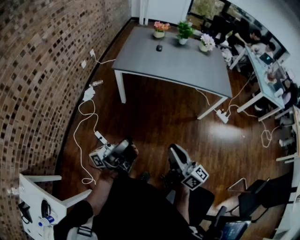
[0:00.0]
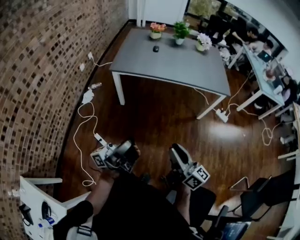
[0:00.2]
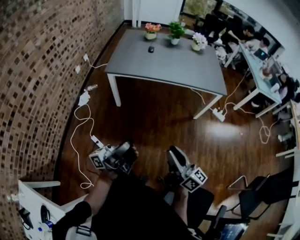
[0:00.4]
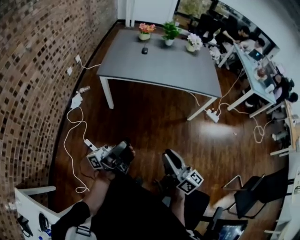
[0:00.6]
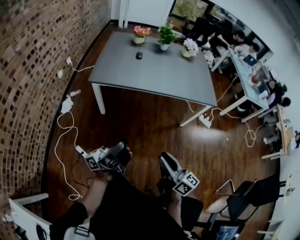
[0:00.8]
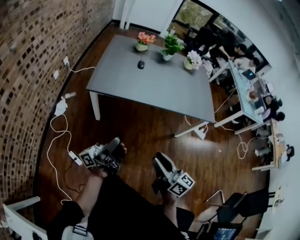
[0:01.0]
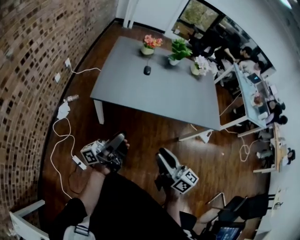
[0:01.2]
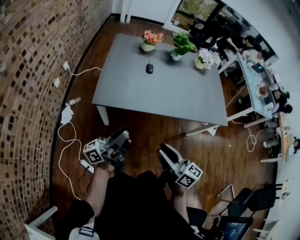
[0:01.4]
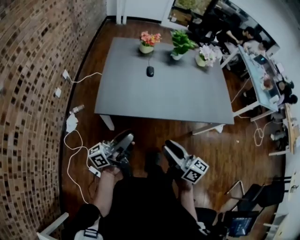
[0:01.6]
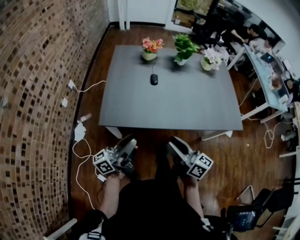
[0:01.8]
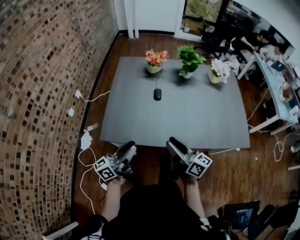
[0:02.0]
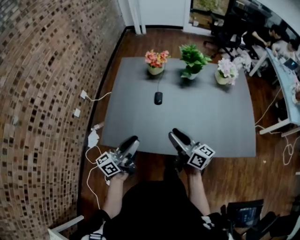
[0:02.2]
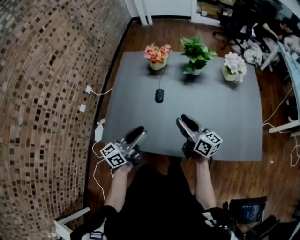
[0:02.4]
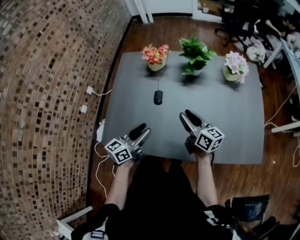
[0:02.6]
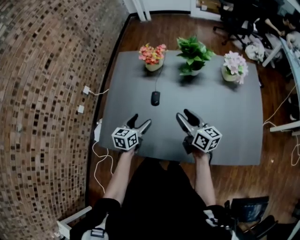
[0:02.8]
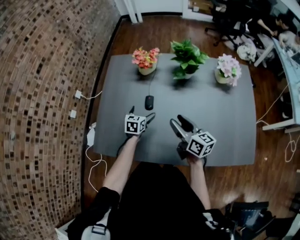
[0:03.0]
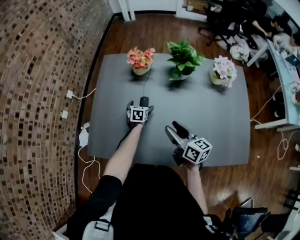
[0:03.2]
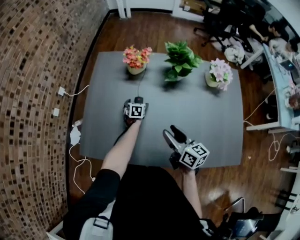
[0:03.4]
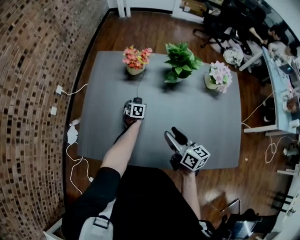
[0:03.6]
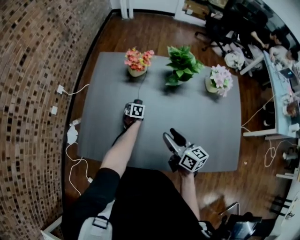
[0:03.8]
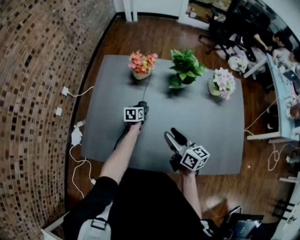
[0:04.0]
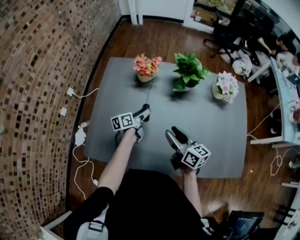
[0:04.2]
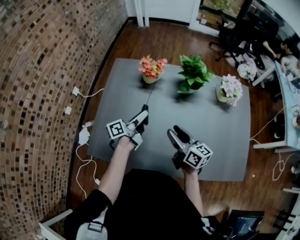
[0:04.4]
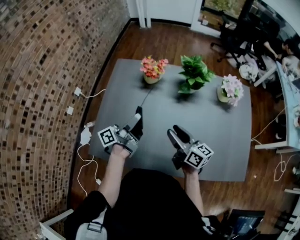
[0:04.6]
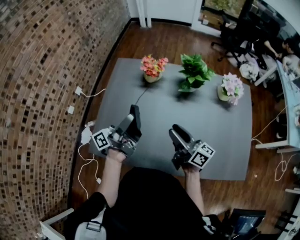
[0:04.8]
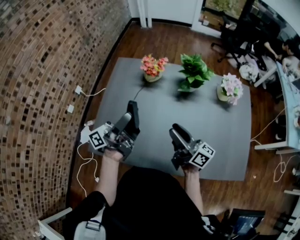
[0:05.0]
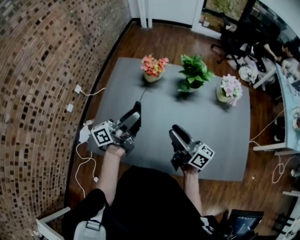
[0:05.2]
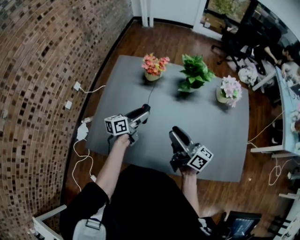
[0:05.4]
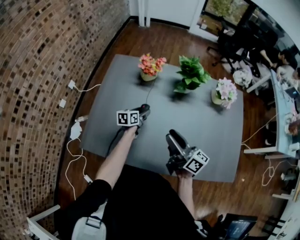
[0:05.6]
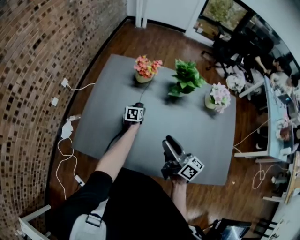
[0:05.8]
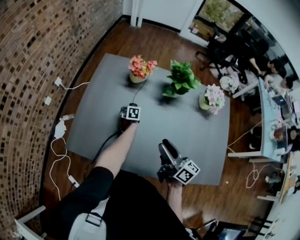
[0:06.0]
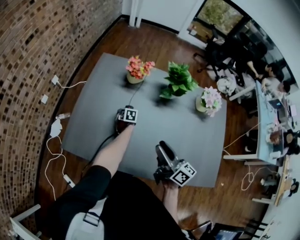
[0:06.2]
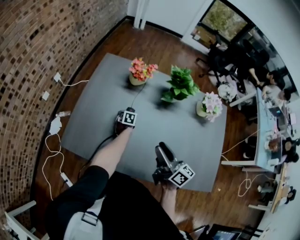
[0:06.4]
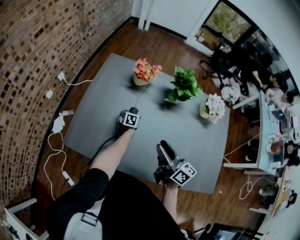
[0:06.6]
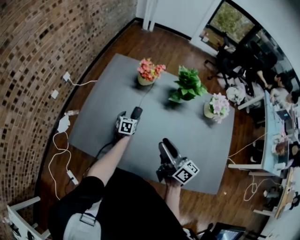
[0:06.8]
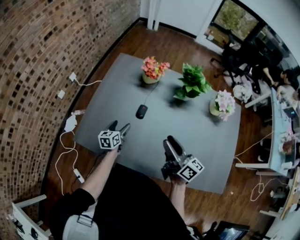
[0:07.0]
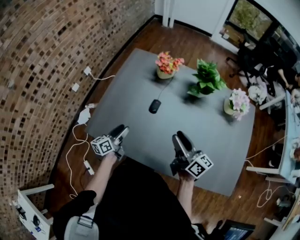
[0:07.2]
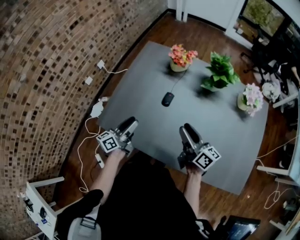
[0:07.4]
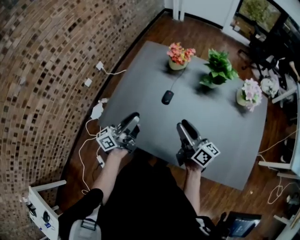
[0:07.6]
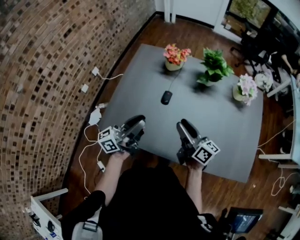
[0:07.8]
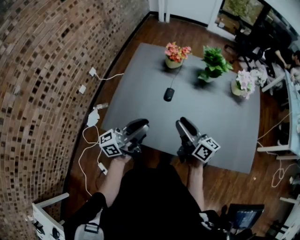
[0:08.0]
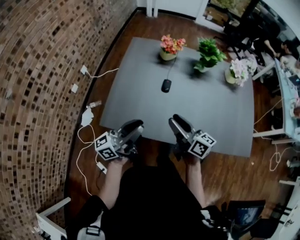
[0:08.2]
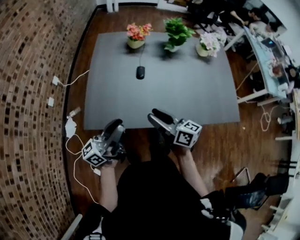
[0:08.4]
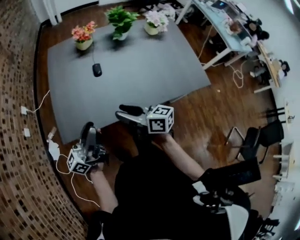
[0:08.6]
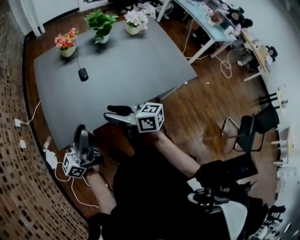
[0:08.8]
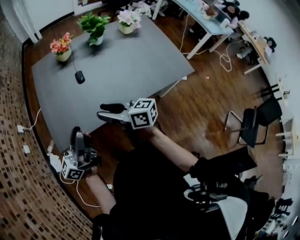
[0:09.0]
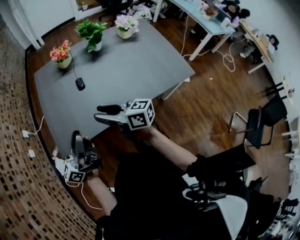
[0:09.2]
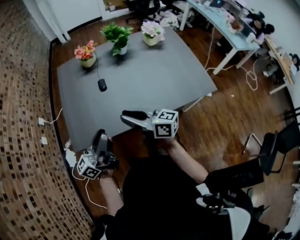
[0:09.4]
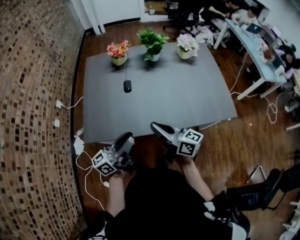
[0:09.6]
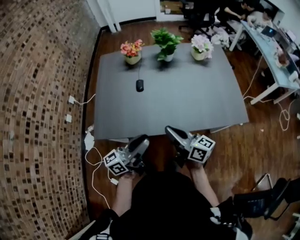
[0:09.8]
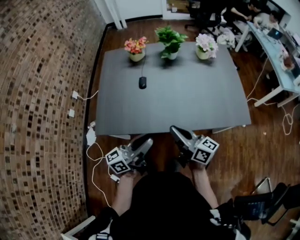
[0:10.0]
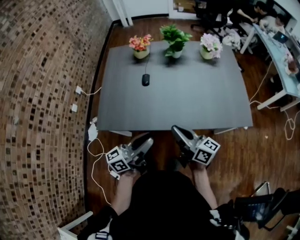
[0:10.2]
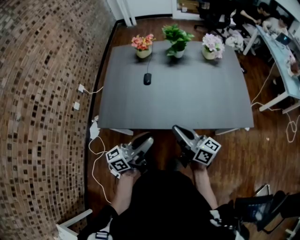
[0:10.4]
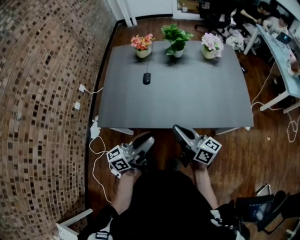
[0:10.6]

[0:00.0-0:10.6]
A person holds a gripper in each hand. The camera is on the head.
0:00.0 to 0:01.6: Both grippers are carried forward, roughly 50 cm. The left gripper changes its angle by about 20 degrees.
0:01.6 to 0:03.0: Both grippers are carried forward and to the right, roughly 50 cm. The left gripper goes approximately 25 cm downward, points its fingers about 70 degrees further downward, and opens its fingers.
0:03.0 to 0:04.6: The right gripper shifts by about 5 cm. Meanwhile the left gripper shifts about 20 cm upward, angles its fingers upward, by roughly 60 degrees, and closes up.
0:04.6 to 0:06.0: The right gripper moves backward, approximately 5 cm, while the left gripper heads downward and forward, covering some 35 cm, and angles its fingers downward, by about 70 degrees.
0:06.0 to 0:07.6: The left gripper heads upward, backward and to the left, covering approximately 40 cm, and angles its fingers upward, by approximately 70 degrees.
0:07.6 to 0:09.0: The left gripper travels backward and upward by some 20 cm, and turns by approximately 30 degrees; the right gripper goes roughly 25 cm backward and to the left.
0:09.0 to 0:10.6: The two grippers go about 20 cm to the right. The right gripper closes up.

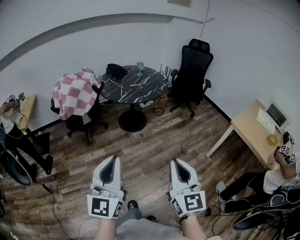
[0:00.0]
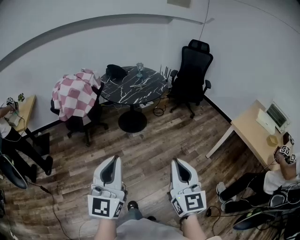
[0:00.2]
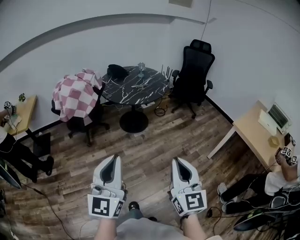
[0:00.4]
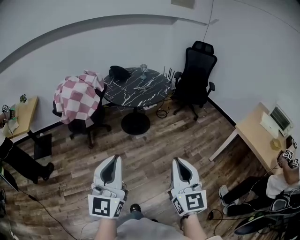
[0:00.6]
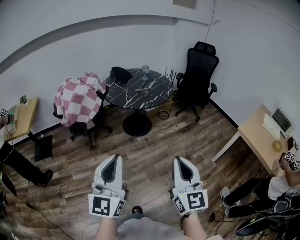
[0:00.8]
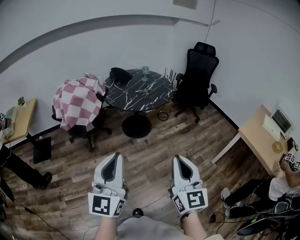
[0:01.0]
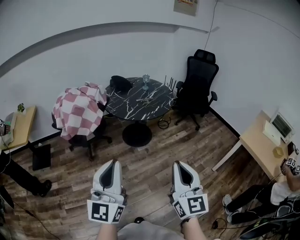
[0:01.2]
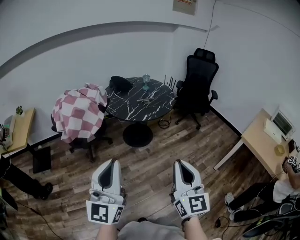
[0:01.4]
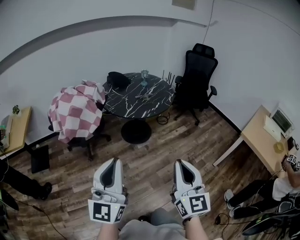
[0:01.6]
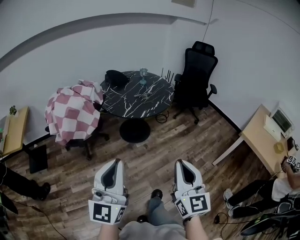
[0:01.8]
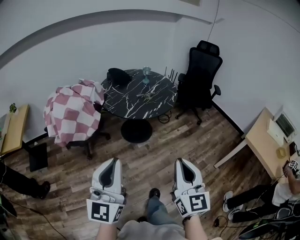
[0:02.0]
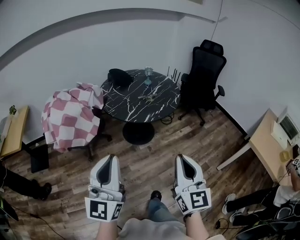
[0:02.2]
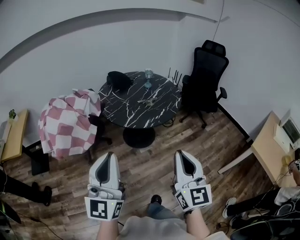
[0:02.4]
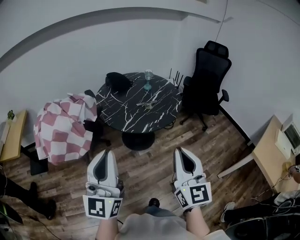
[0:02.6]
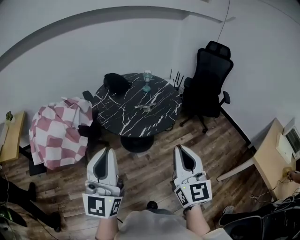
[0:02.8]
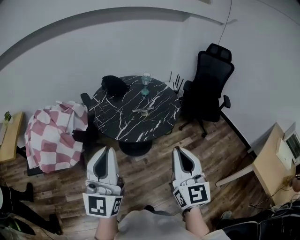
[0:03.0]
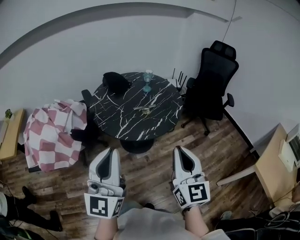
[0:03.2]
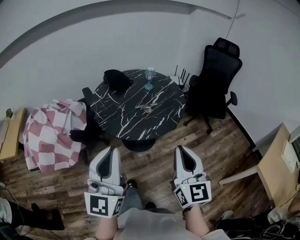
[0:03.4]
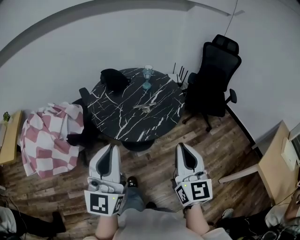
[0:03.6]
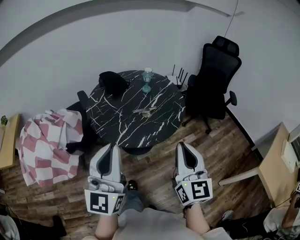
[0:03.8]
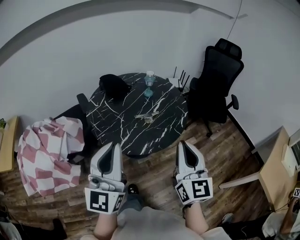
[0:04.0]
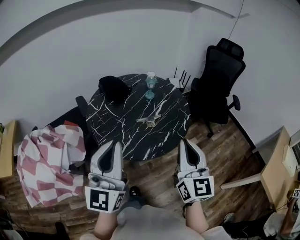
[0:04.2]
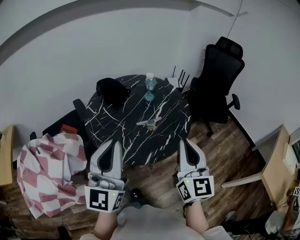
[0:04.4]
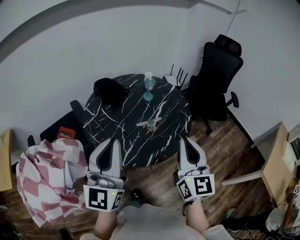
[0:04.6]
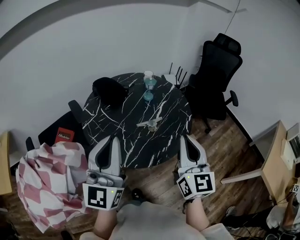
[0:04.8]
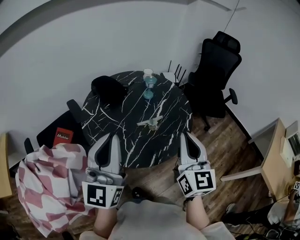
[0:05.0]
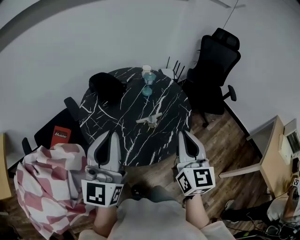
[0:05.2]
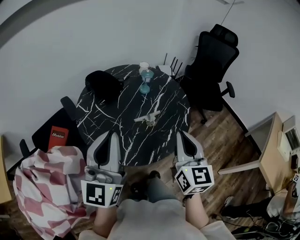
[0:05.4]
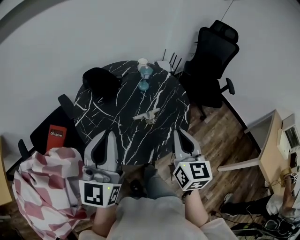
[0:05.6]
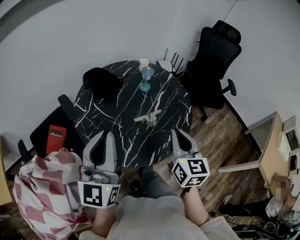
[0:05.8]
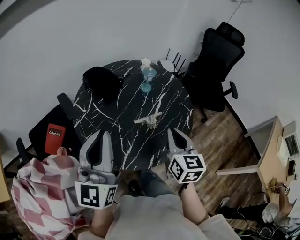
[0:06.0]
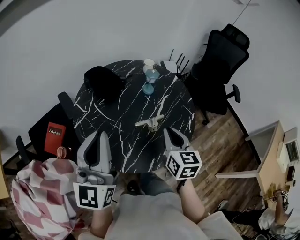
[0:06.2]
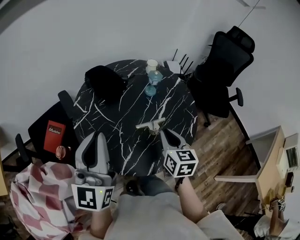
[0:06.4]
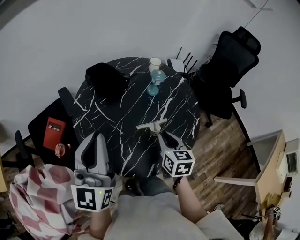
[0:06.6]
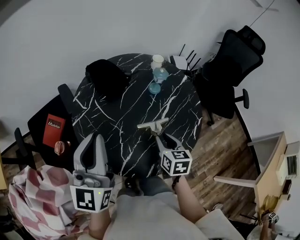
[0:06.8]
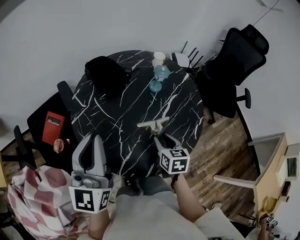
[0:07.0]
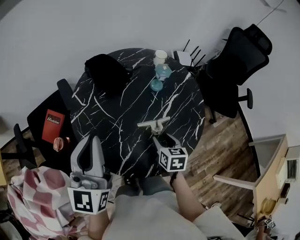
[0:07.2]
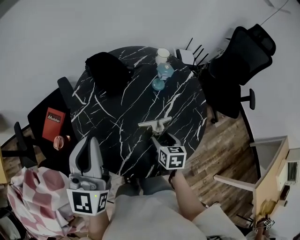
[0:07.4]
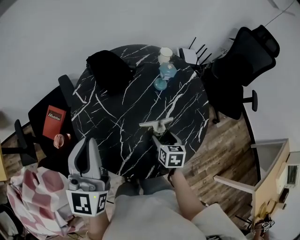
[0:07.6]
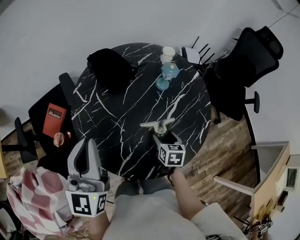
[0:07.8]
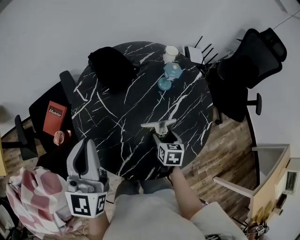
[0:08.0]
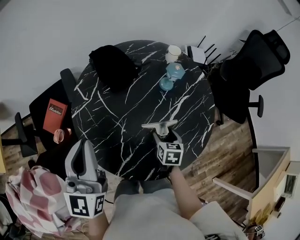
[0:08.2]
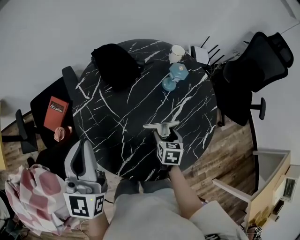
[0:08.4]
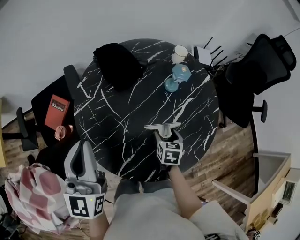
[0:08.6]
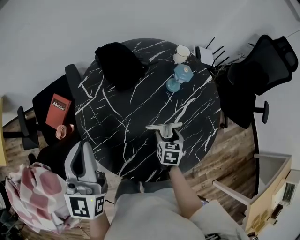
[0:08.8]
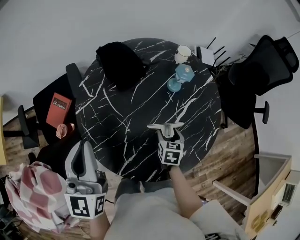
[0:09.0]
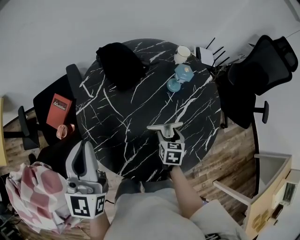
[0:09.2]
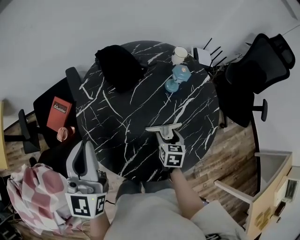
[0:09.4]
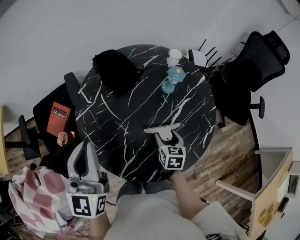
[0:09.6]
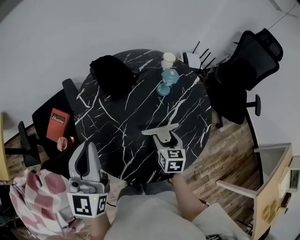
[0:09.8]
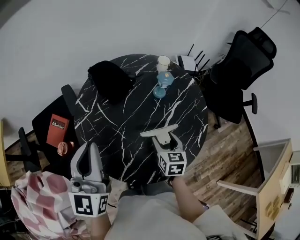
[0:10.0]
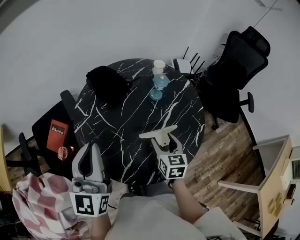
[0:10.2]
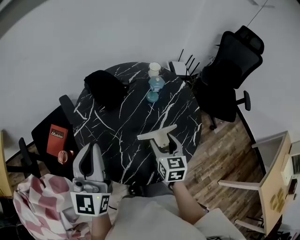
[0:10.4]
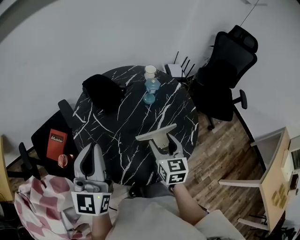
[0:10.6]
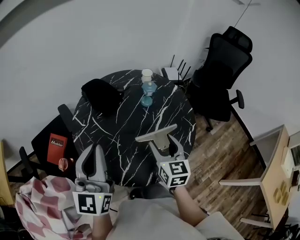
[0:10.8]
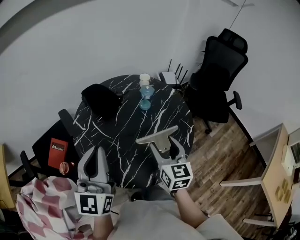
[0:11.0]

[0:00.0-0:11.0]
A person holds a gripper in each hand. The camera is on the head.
0:00.0 to 0:01.6: Both grippers move forward and to the left, roughly 15 cm.
0:01.6 to 0:03.2: The grippers both shift forward by approximately 35 cm.
0:03.2 to 0:04.8: Both grippers travel together forward, about 25 cm.
0:04.8 to 0:06.2: The right gripper moves downward and forward, approximately 20 cm, and rotates approximately 30 degrees; the left gripper moves forward and to the left, roughly 10 cm.
0:06.2 to 0:07.8: The left gripper shifts roughly 10 cm downward and forward. The right gripper travels downward by about 25 cm, turns by approximately 30 degrees, and opens.
0:07.8 to 0:09.4: There are only small adjustments of the grippers.
0:09.4 to 0:11.0: The left gripper is displaced upward and to the right by about 10 cm. Meanwhile the right gripper goes roughly 25 cm upward, and angles its fingers upward, by some 30 degrees.

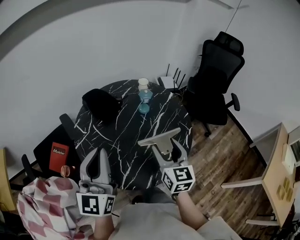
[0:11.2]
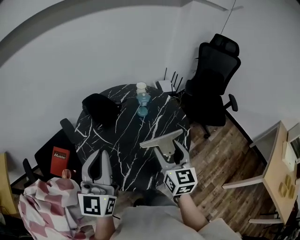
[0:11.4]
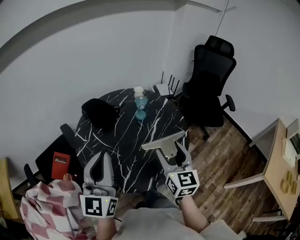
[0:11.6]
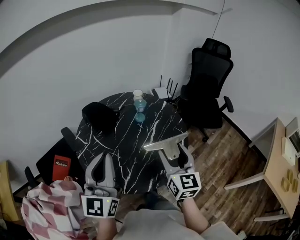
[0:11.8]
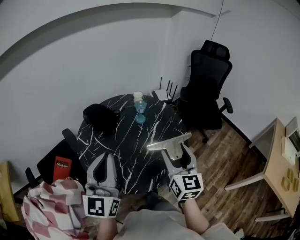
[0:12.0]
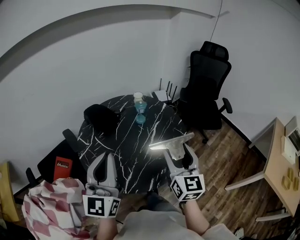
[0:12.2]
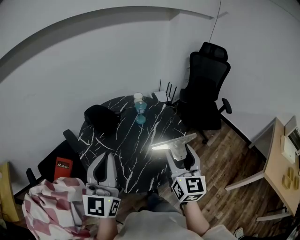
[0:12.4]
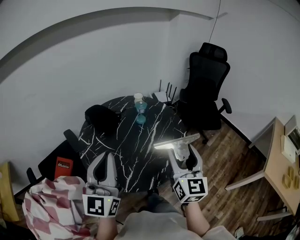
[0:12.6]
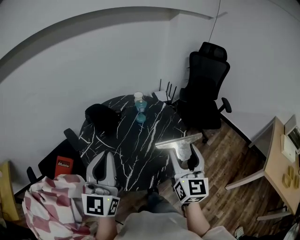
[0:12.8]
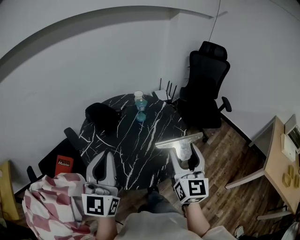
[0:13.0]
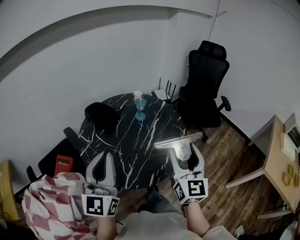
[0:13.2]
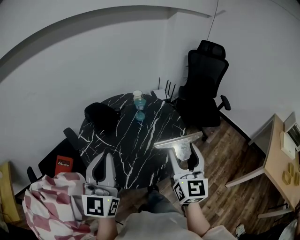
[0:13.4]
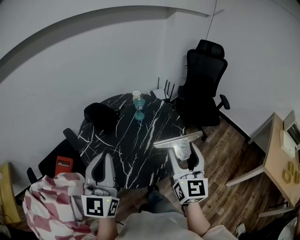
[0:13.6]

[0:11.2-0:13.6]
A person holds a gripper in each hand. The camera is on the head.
0:11.2 to 0:12.4: The left gripper is displaced backward by some 5 cm, while the right gripper shifts about 15 cm upward, backward and to the right.
0:12.4 to 0:13.6: The grippers move only a little.
